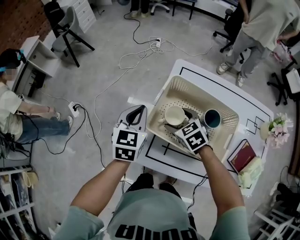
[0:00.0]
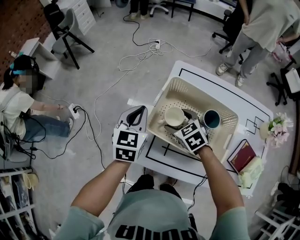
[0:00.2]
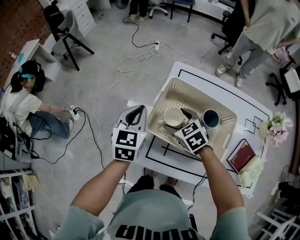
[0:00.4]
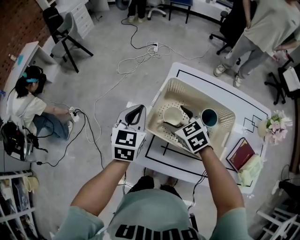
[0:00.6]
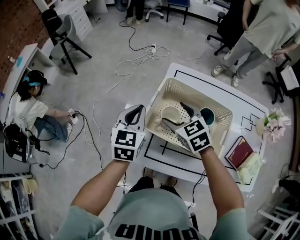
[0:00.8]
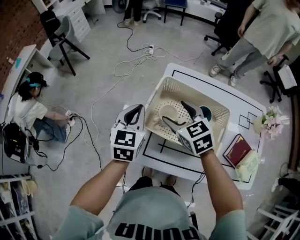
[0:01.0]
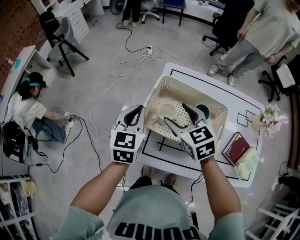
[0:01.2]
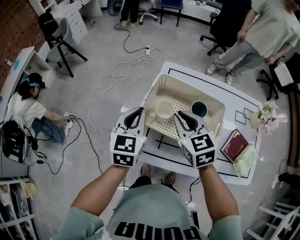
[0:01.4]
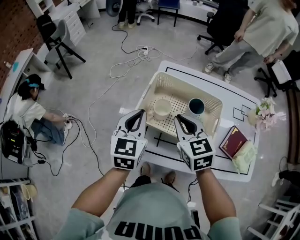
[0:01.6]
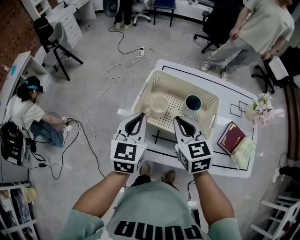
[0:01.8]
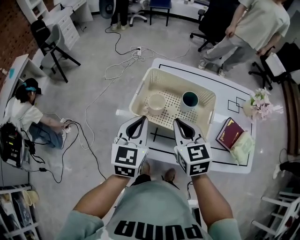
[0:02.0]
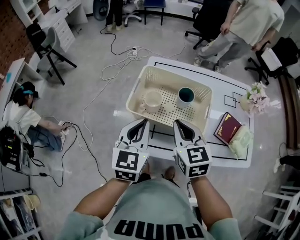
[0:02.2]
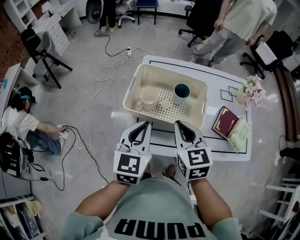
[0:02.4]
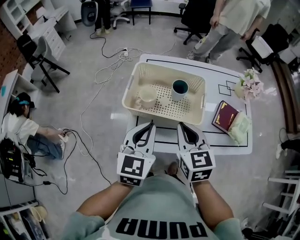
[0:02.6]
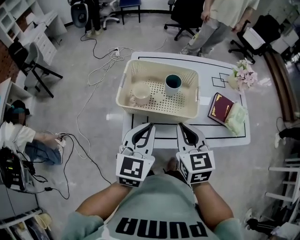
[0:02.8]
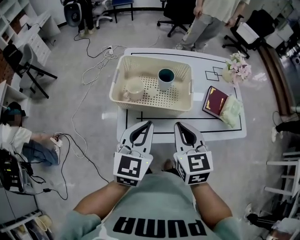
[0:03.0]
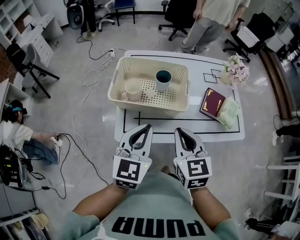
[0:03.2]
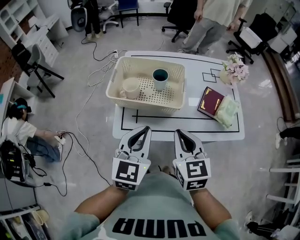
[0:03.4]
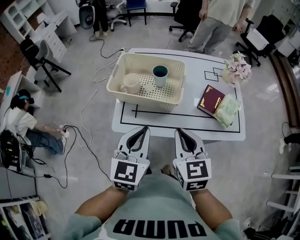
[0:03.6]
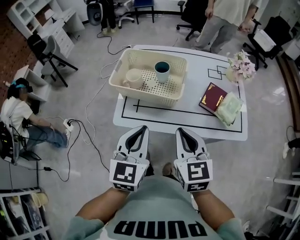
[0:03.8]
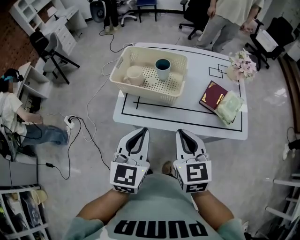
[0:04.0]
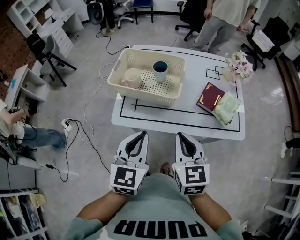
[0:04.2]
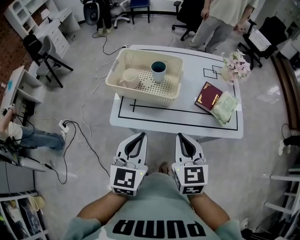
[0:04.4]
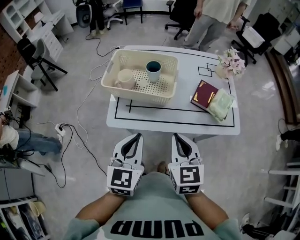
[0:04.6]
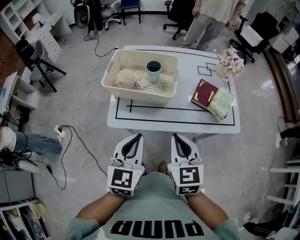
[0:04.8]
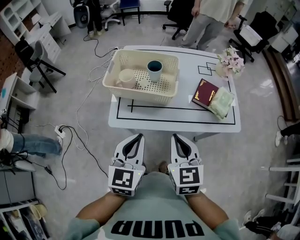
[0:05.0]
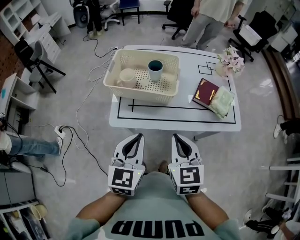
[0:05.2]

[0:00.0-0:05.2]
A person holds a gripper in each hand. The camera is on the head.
0.0 to 1.8 s: The right gripper travels upward and backward by about 20 cm, swivels approximately 30 degrees, and closes its fingers. Meanwhile the left gripper moves backward and upward, approximately 10 cm.
1.8 to 3.4 s: The grippers both shift backward and to the right by some 20 cm.
3.4 to 5.2 s: Both grippers travel together backward, some 10 cm.

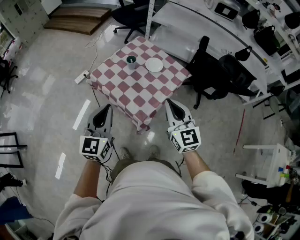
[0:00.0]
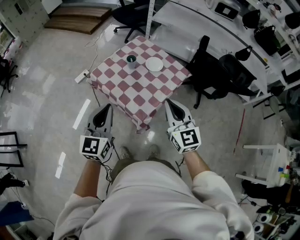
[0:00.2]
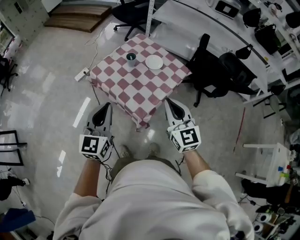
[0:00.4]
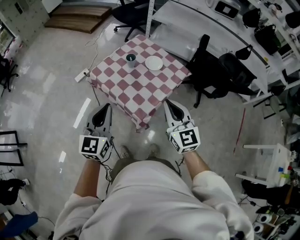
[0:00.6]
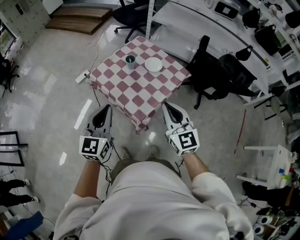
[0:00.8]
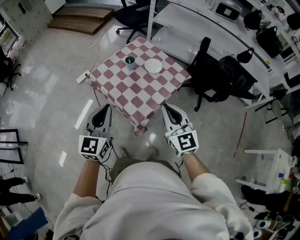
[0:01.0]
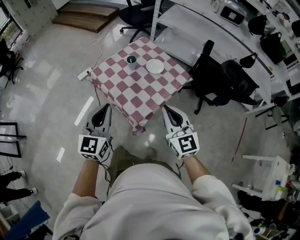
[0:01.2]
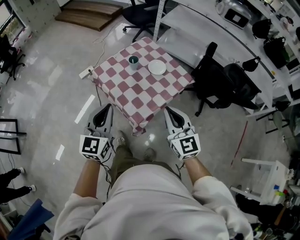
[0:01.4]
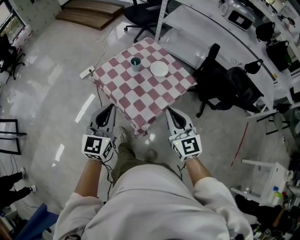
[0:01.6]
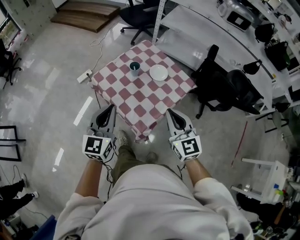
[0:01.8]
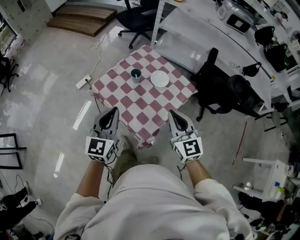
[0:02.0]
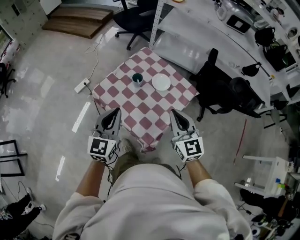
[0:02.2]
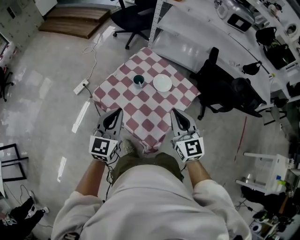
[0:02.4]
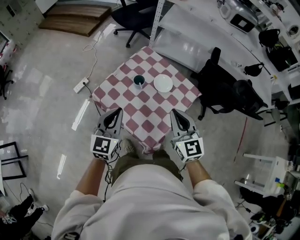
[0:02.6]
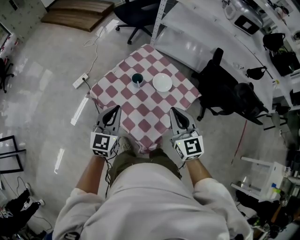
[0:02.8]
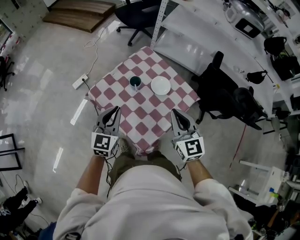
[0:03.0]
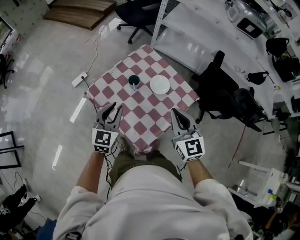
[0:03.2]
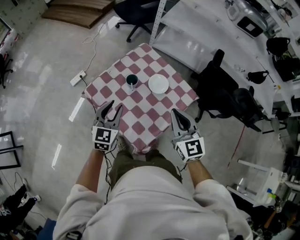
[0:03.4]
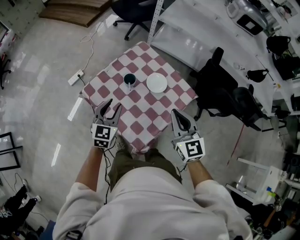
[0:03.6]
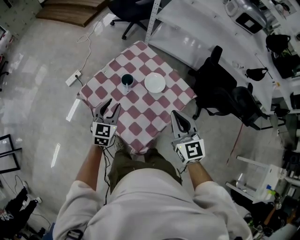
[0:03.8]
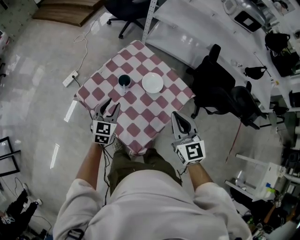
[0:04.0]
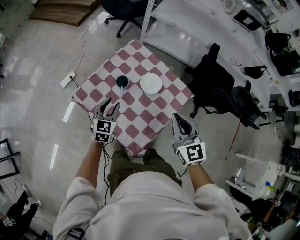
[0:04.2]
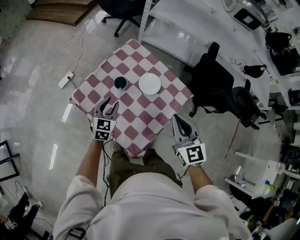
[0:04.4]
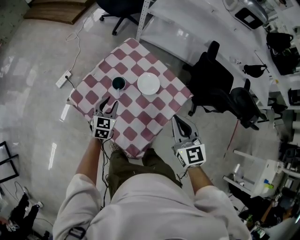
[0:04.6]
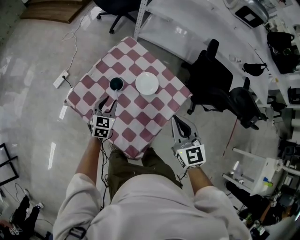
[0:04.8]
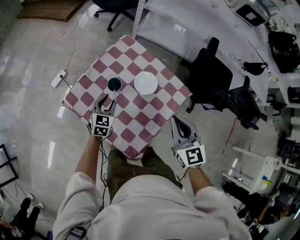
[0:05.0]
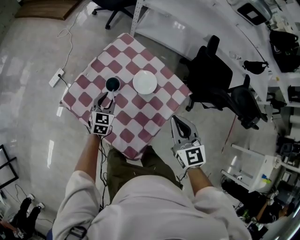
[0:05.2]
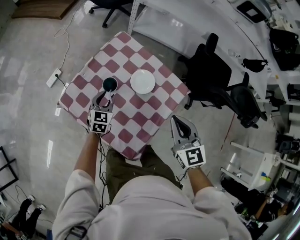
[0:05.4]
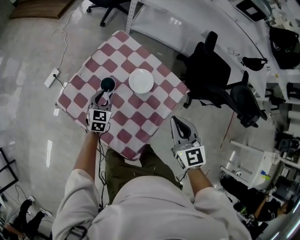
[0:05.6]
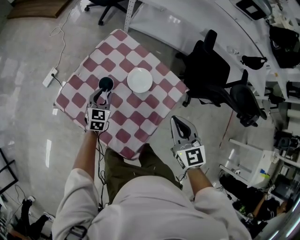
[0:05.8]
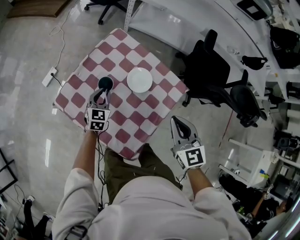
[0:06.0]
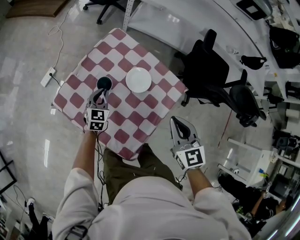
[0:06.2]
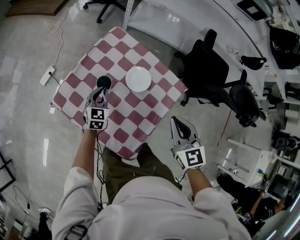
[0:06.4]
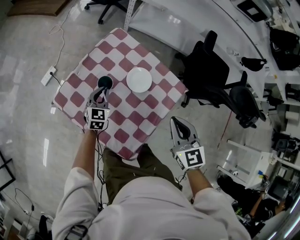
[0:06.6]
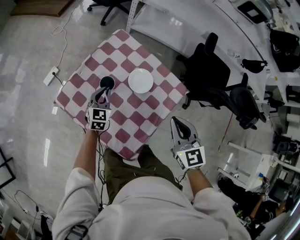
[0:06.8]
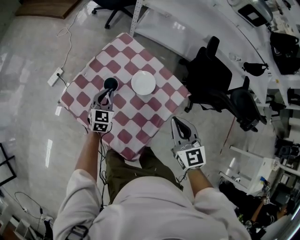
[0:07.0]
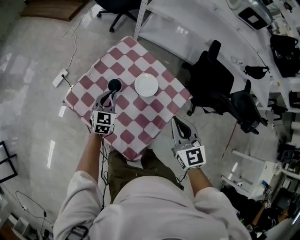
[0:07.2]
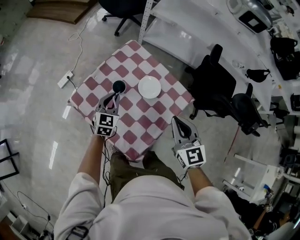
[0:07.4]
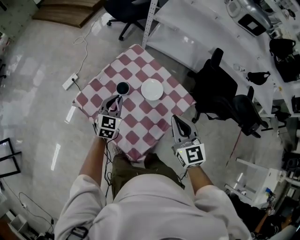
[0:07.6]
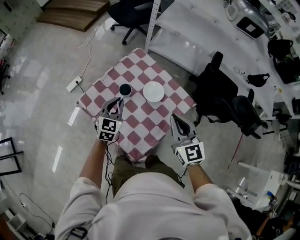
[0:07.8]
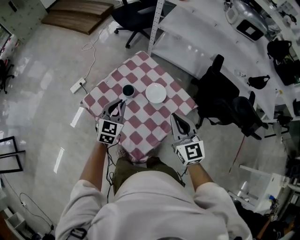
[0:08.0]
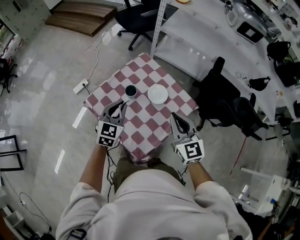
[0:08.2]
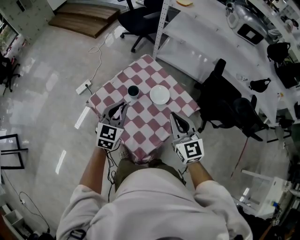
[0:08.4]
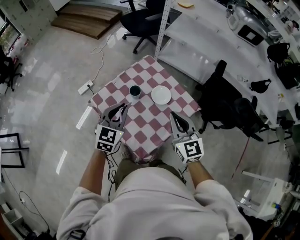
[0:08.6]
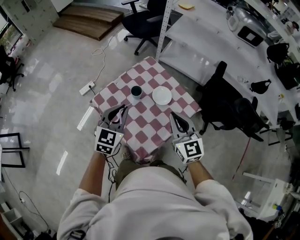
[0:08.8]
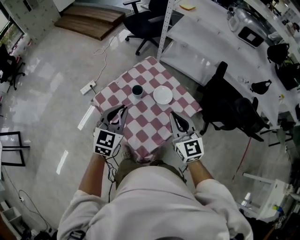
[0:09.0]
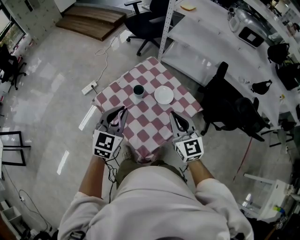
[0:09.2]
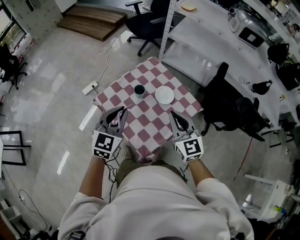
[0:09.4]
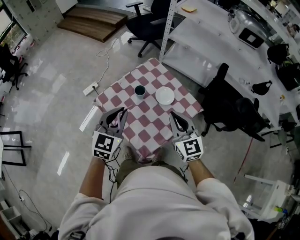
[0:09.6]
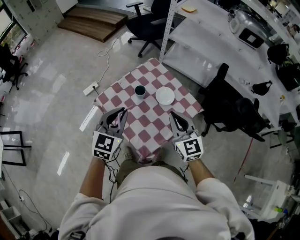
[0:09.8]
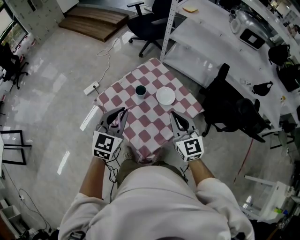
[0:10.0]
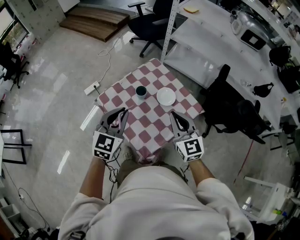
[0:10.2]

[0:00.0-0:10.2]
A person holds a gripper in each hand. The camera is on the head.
0.0 to 1.4 s: The grippers stay close to where they were, moving slightly.
1.4 to 3.0 s: Both grippers move forward, about 20 cm.
3.0 to 4.4 s: The left gripper goes approximately 20 cm downward and forward, and opens its fingers. The right gripper shifts approximately 5 cm to the right.
4.4 to 5.8 s: The left gripper heads downward and forward, covering some 10 cm, while the right gripper goes roughly 5 cm downward.
5.8 to 7.2 s: The left gripper heads upward, covering approximately 5 cm, and closes.
7.2 to 8.8 s: The right gripper moves upward and to the left, about 10 cm. The left gripper shifts about 25 cm upward and backward.
8.8 to 10.2 s: The left gripper shifts by approximately 5 cm.

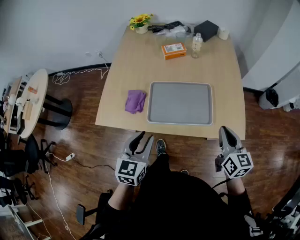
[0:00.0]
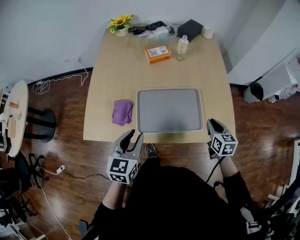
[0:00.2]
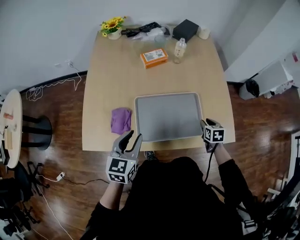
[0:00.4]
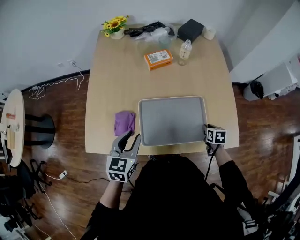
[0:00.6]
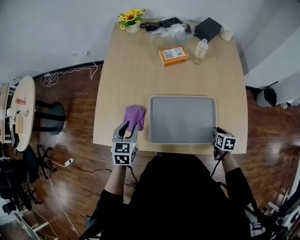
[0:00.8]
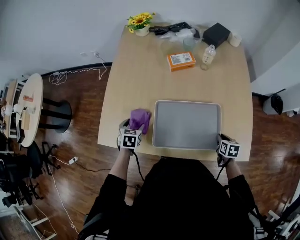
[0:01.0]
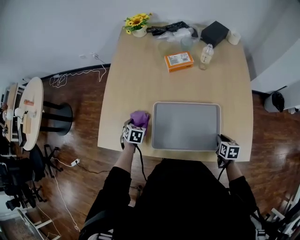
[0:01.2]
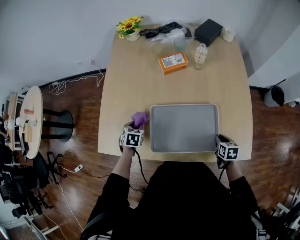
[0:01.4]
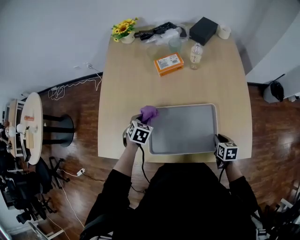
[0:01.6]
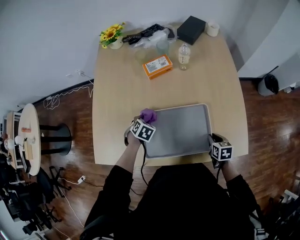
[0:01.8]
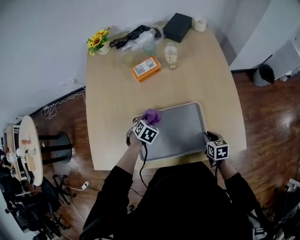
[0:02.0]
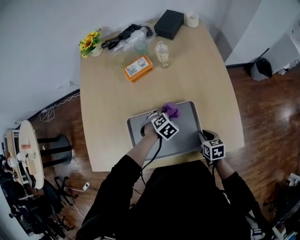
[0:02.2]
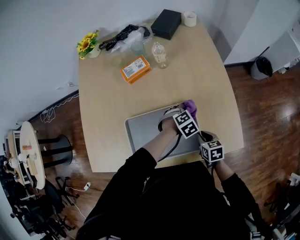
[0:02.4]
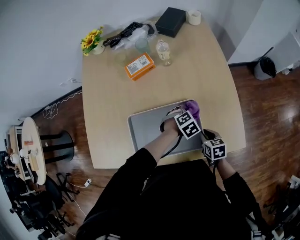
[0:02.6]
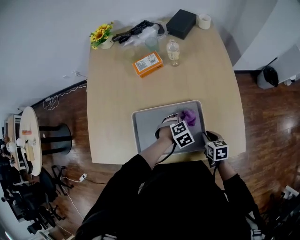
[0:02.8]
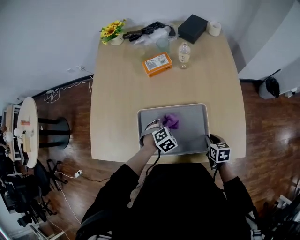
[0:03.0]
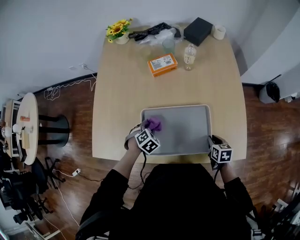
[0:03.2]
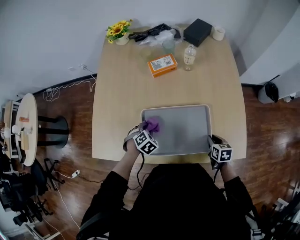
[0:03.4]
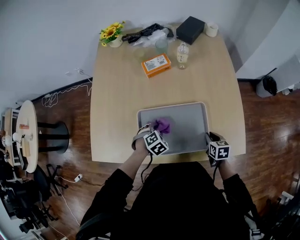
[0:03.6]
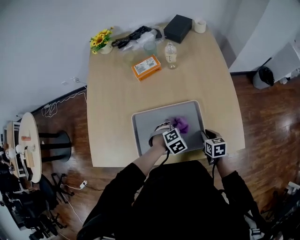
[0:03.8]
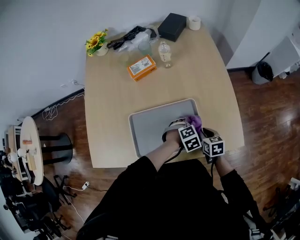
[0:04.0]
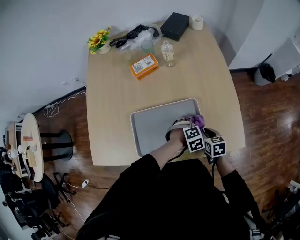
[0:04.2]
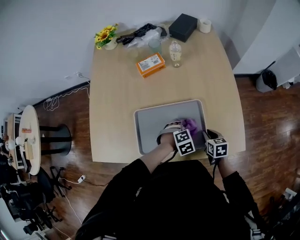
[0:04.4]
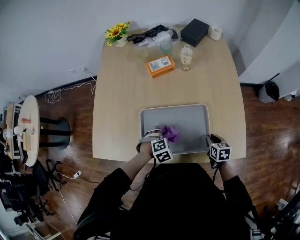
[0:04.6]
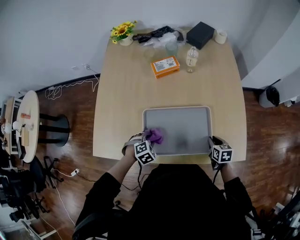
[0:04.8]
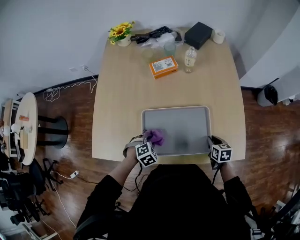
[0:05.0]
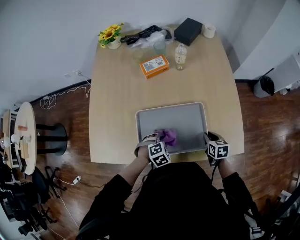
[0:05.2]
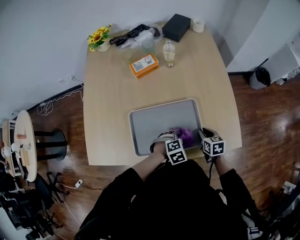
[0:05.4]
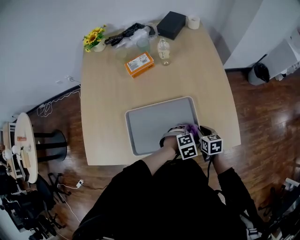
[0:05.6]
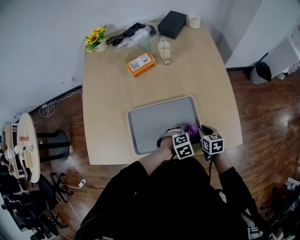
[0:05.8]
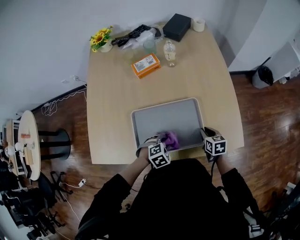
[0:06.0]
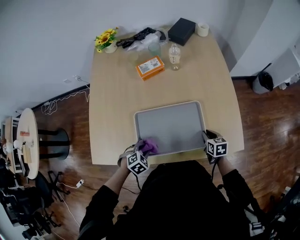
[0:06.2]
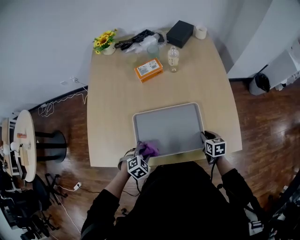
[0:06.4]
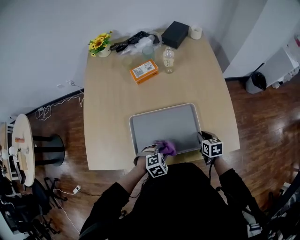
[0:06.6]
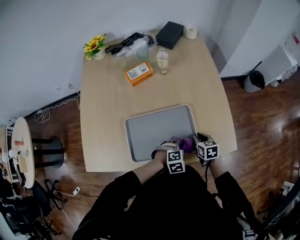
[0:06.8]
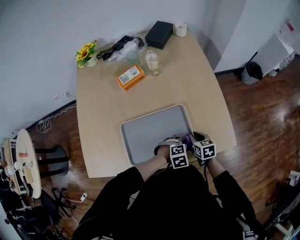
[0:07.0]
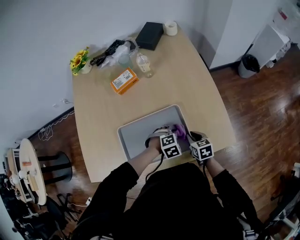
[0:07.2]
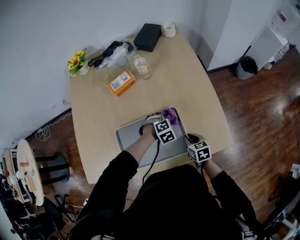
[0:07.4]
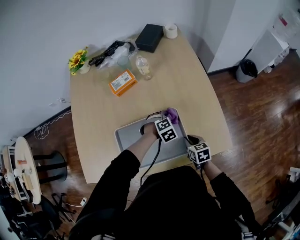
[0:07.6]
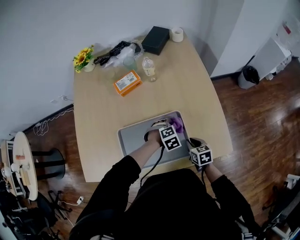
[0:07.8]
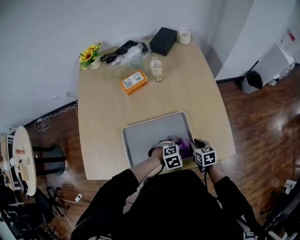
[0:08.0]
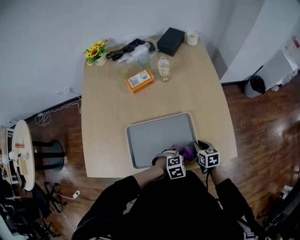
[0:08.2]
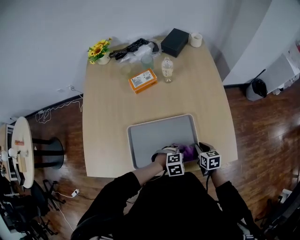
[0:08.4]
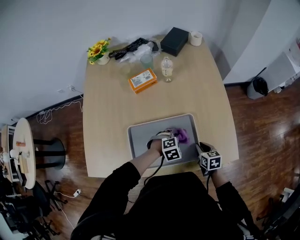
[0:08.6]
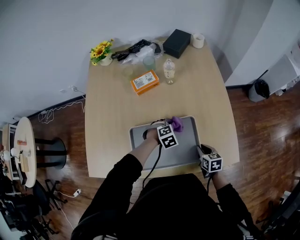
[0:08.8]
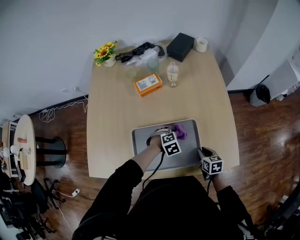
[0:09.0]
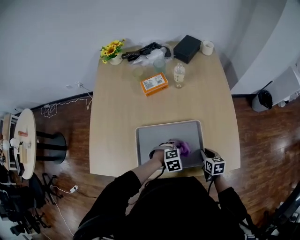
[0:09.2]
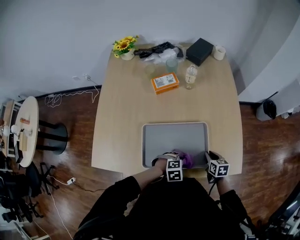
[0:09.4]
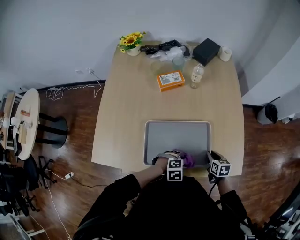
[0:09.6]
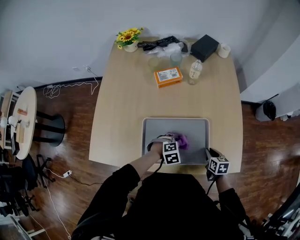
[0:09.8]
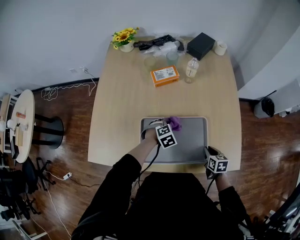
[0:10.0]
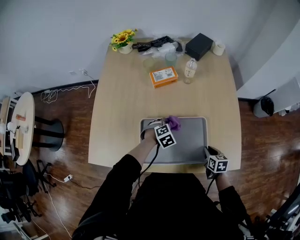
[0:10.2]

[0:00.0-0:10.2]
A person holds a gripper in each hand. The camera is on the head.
0.0 to 1.4 s: The right gripper travels downward and forward by some 30 cm, and points its fingers about 40 degrees further downward, while the left gripper heads forward, downward and to the left, covering approximately 35 cm, tips its fingers downward by roughly 40 degrees, and opens, then closes again.
1.4 to 3.0 s: The left gripper goes some 25 cm to the right, and rotates around the line of its fingers by approximately 50 degrees, clockwise from behind.
3.0 to 4.4 s: The left gripper moves left and right over roughly 30 cm, changing direction 2 times.
4.4 to 5.8 s: The left gripper goes to the left and returns, roughly 20 cm each way.
5.8 to 7.2 s: The left gripper travels to the left and back again, about 25 cm each way.
7.2 to 8.8 s: The left gripper goes forward and backward, approximately 20 cm each way, reversing 2 times.
8.8 to 10.2 s: The left gripper is displaced to the left by some 10 cm, and travels backward and back again, about 20 cm each way.
